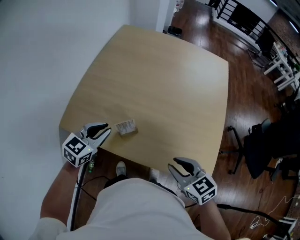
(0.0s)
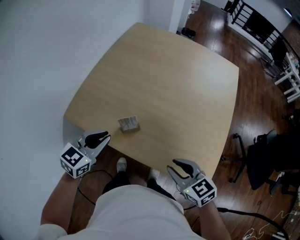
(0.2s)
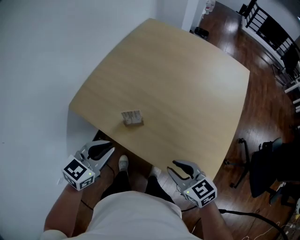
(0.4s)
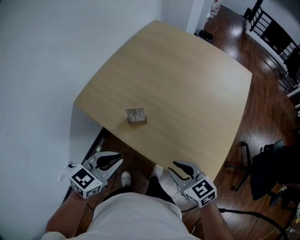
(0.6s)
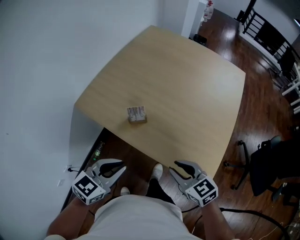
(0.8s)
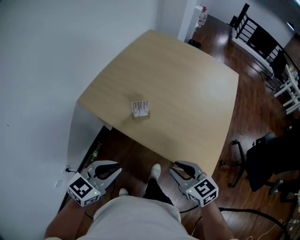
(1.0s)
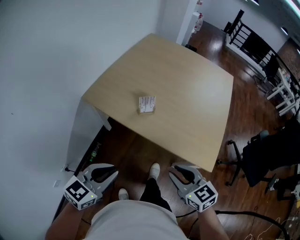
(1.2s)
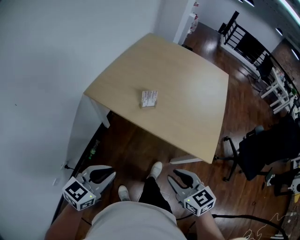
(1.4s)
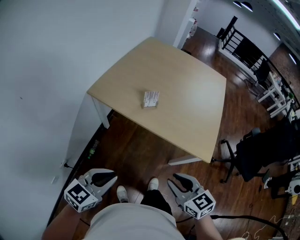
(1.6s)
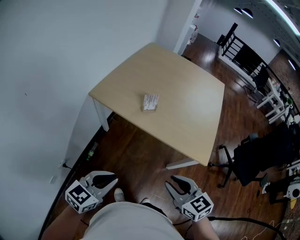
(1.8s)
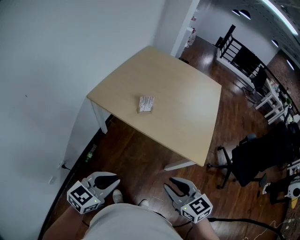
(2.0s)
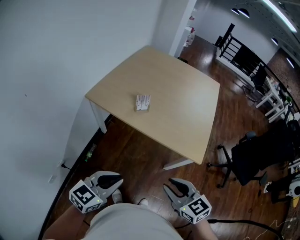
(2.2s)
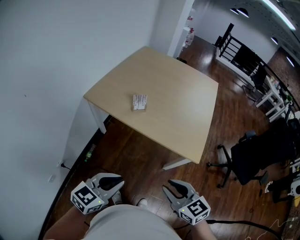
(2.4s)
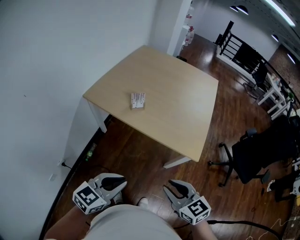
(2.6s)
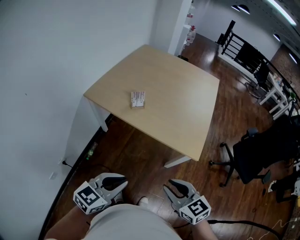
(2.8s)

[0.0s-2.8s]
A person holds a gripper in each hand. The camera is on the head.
0.0s to 1.4s: The left gripper goes roughly 40 cm backward. Meanwhile the right gripper is displaced backward and to the left by some 25 cm.
1.4s to 2.8s: The left gripper travels to the right and backward by some 15 cm, while the right gripper heads backward and to the right, covering roughly 15 cm.

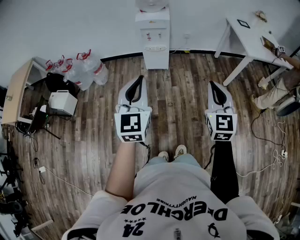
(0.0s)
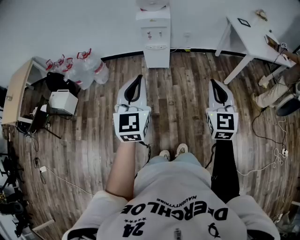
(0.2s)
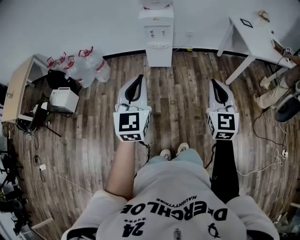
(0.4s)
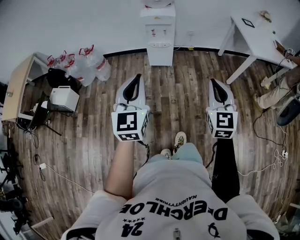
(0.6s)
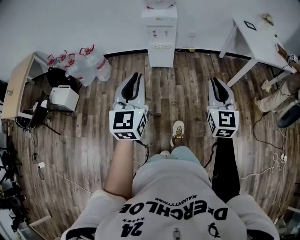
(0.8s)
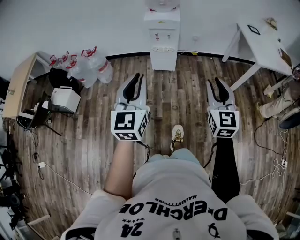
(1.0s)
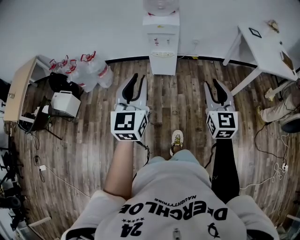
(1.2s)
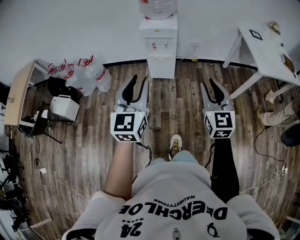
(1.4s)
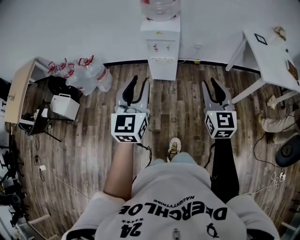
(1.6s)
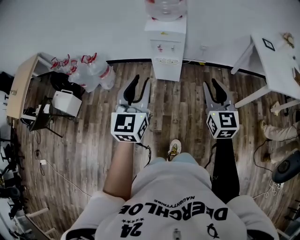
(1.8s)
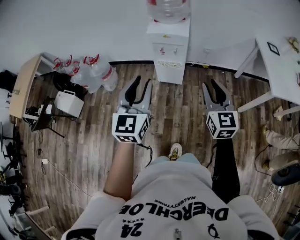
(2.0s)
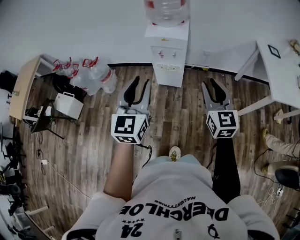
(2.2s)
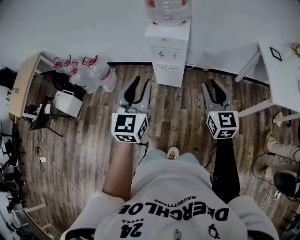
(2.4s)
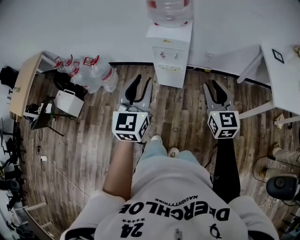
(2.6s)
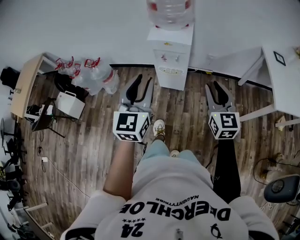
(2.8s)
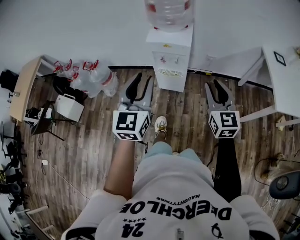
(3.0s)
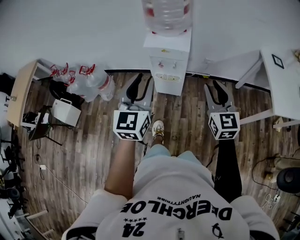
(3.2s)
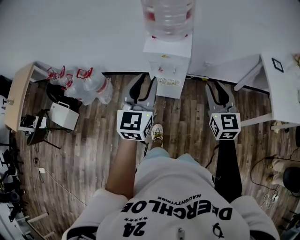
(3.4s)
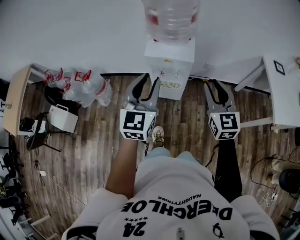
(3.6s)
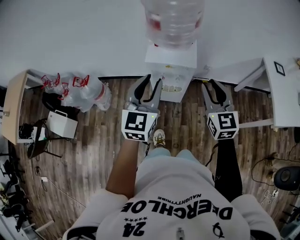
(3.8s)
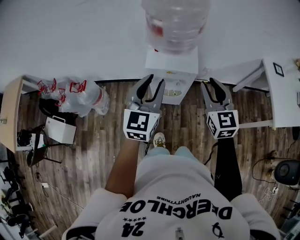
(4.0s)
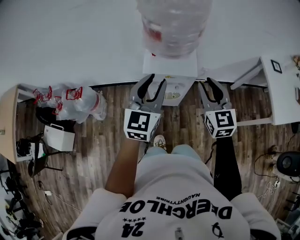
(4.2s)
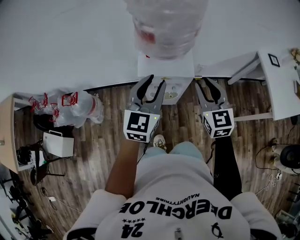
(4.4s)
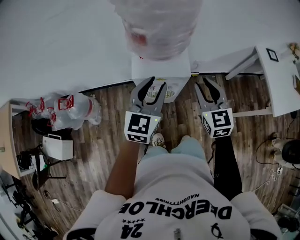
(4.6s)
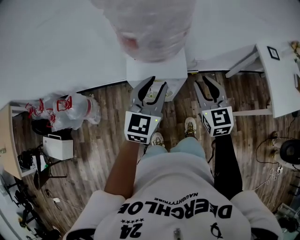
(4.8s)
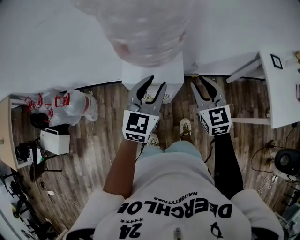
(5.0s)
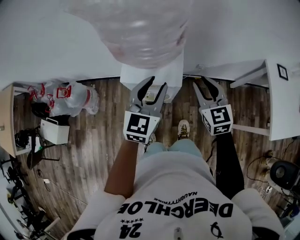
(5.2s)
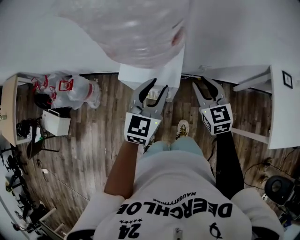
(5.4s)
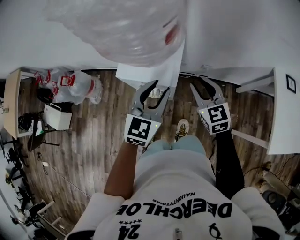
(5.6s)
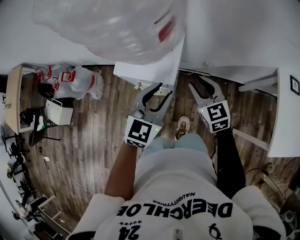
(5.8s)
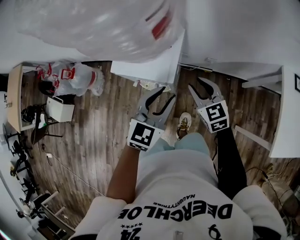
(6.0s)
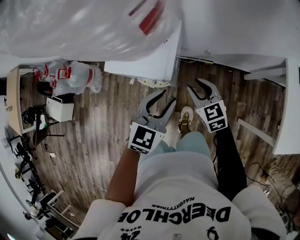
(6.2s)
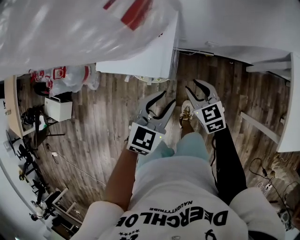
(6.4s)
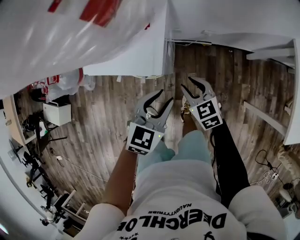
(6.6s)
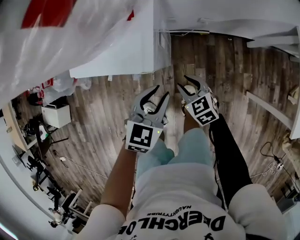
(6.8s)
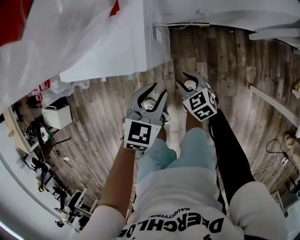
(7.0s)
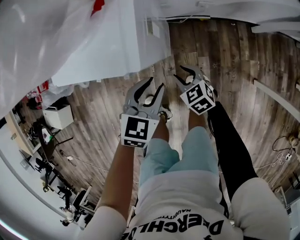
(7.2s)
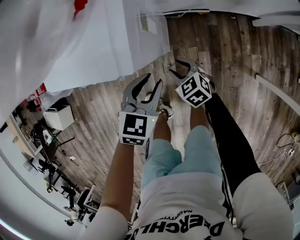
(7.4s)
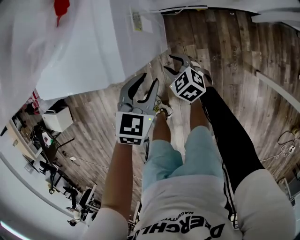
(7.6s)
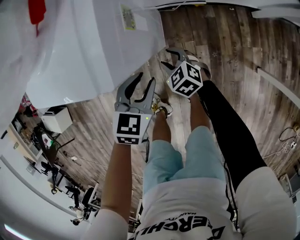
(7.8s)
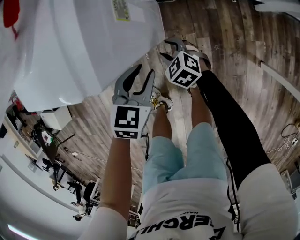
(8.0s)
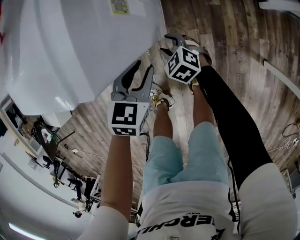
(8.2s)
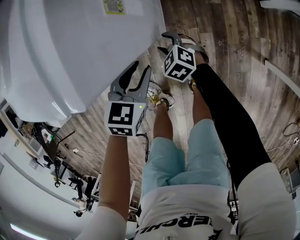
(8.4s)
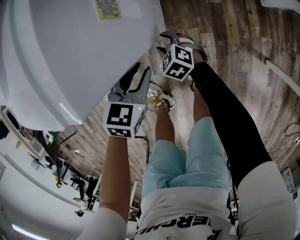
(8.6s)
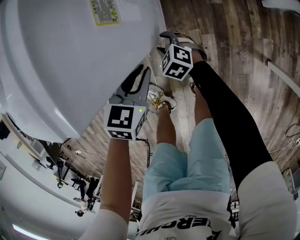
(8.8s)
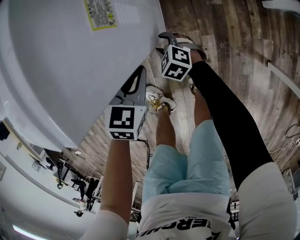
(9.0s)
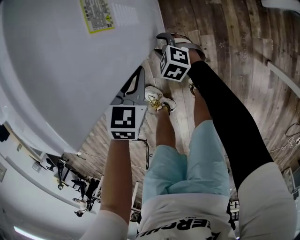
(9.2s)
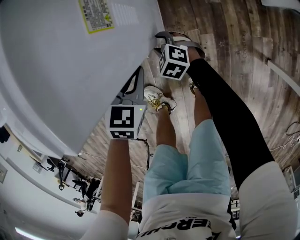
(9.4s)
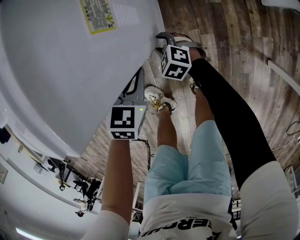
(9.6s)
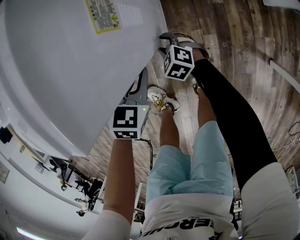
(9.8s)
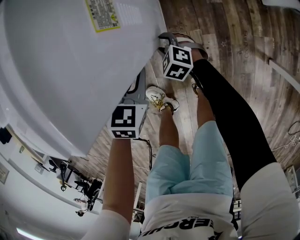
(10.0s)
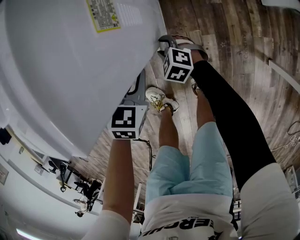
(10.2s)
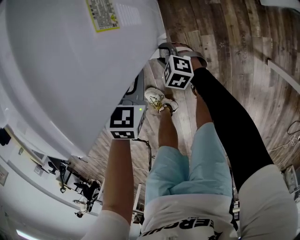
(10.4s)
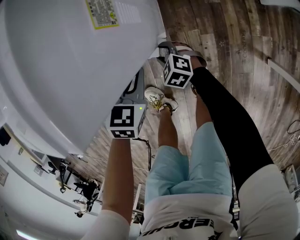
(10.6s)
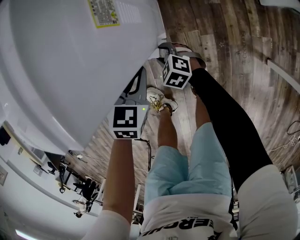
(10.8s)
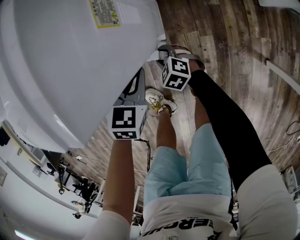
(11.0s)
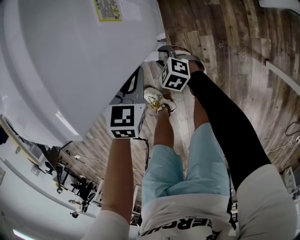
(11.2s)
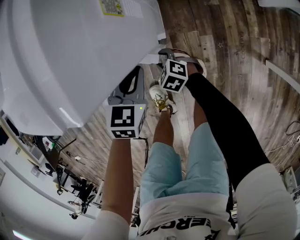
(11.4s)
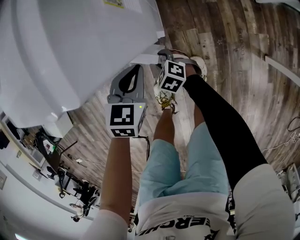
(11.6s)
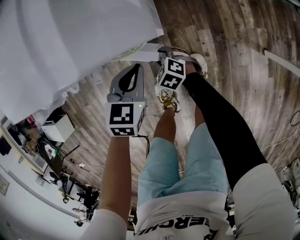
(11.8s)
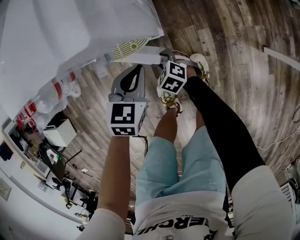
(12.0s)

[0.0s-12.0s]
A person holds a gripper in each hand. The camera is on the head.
0.0s to 1.6s: Both grippers move forward, approximately 20 cm. The left gripper opens up. Meanwhile the right gripper opens up.
1.6s to 3.0s: Both grippers travel together forward, about 20 cm.
3.0s to 4.4s: The left gripper is displaced forward by about 30 cm, and rotates approximately 20 degrees; the right gripper shifts some 30 cm forward and to the left.
4.4s to 6.0s: The left gripper travels to the right and downward by approximately 20 cm; the right gripper goes some 25 cm downward, to the right and forward, and turns by roughly 30 degrees.
6.0s to 7.6s: The grippers both shift downward by roughly 35 cm. The right gripper swivels some 20 degrees, while the left gripper turns by roughly 30 degrees.
7.6s to 9.0s: The two grippers go some 10 cm downward. The left gripper closes.
9.0s to 10.4s: The grippers make only small movements.
10.4s to 12.0s: The right gripper heads backward, covering about 5 cm, while the left gripper shifts by approximately 5 cm.

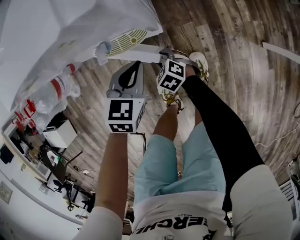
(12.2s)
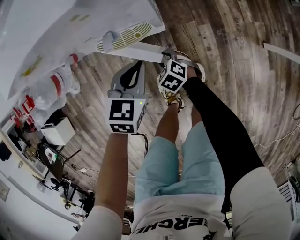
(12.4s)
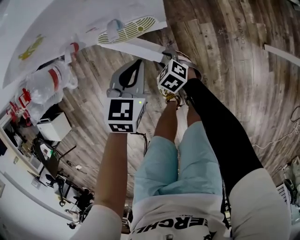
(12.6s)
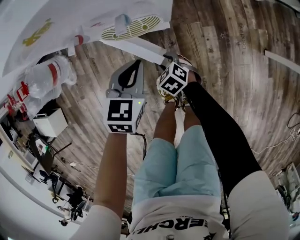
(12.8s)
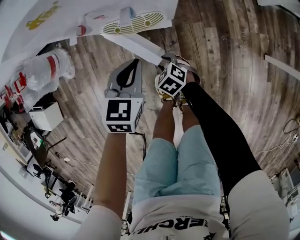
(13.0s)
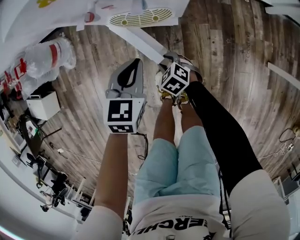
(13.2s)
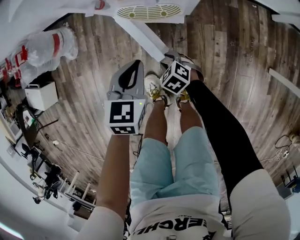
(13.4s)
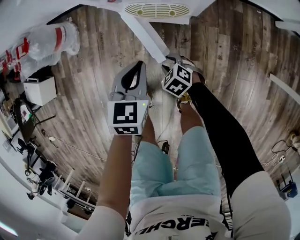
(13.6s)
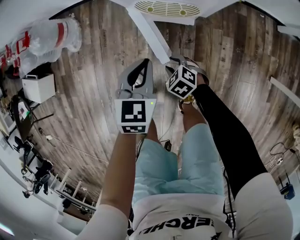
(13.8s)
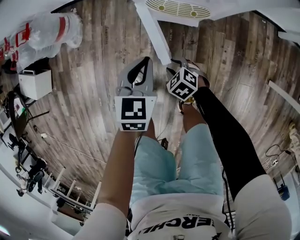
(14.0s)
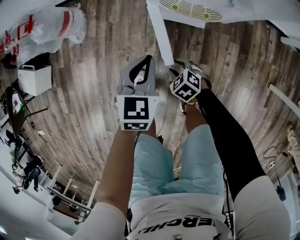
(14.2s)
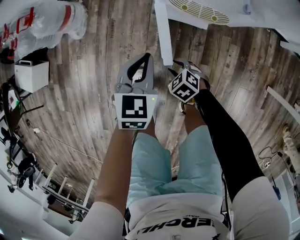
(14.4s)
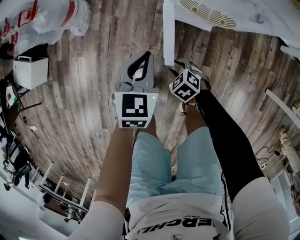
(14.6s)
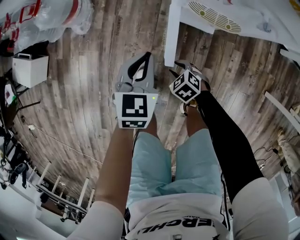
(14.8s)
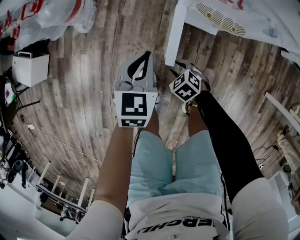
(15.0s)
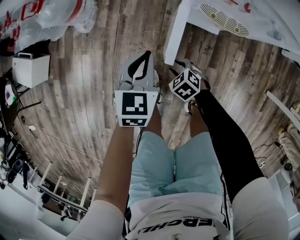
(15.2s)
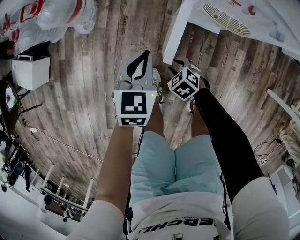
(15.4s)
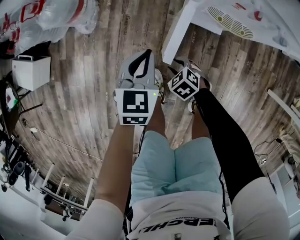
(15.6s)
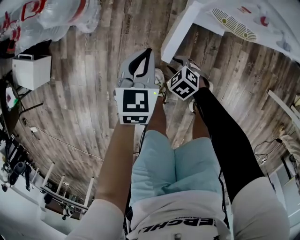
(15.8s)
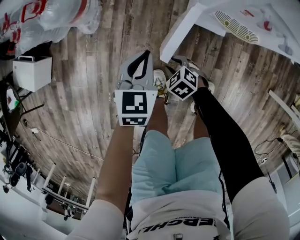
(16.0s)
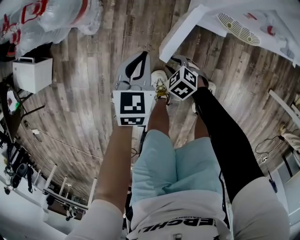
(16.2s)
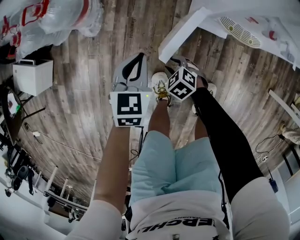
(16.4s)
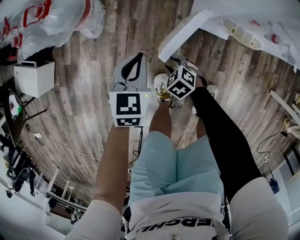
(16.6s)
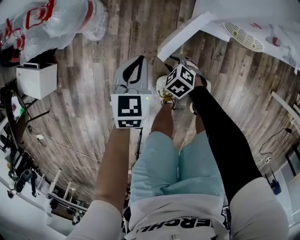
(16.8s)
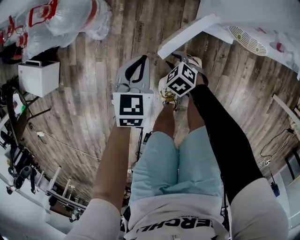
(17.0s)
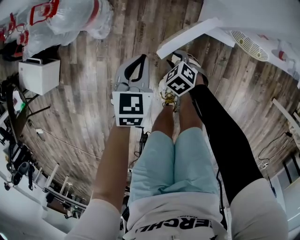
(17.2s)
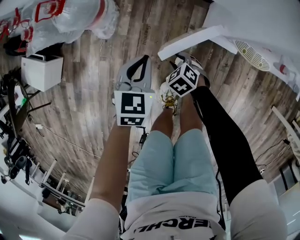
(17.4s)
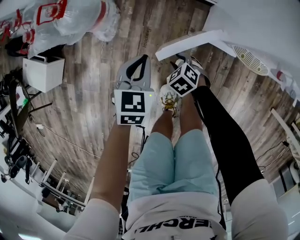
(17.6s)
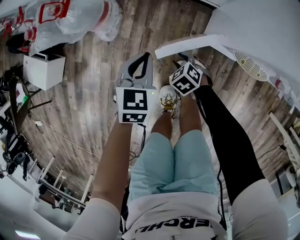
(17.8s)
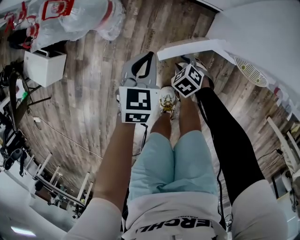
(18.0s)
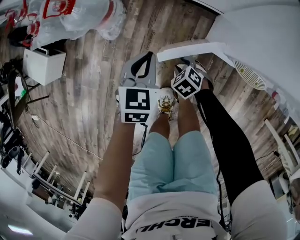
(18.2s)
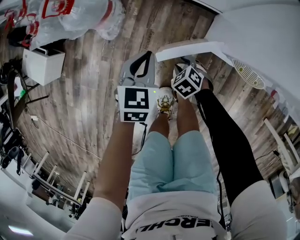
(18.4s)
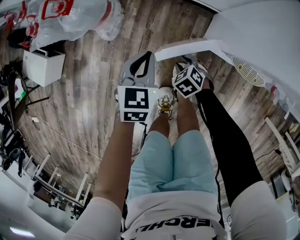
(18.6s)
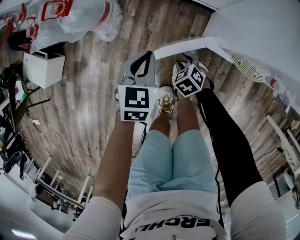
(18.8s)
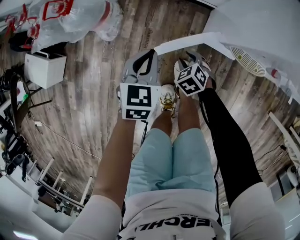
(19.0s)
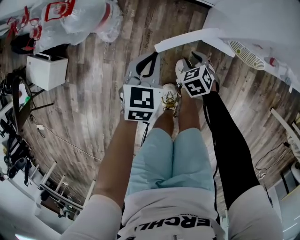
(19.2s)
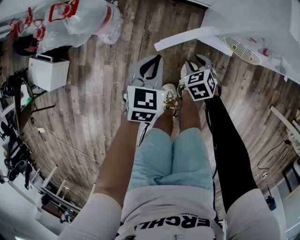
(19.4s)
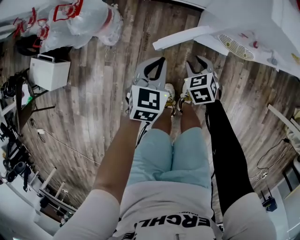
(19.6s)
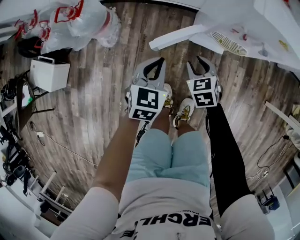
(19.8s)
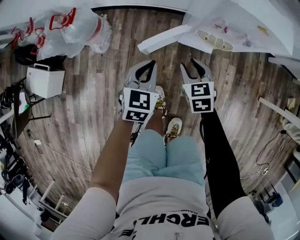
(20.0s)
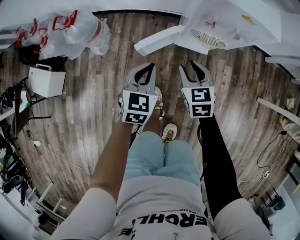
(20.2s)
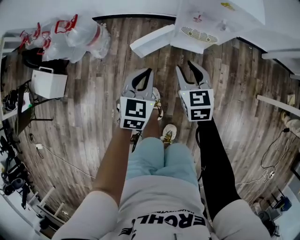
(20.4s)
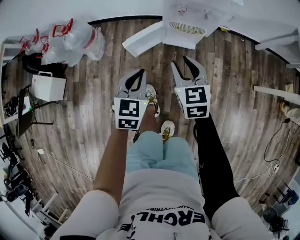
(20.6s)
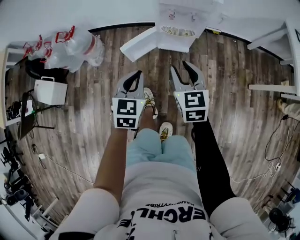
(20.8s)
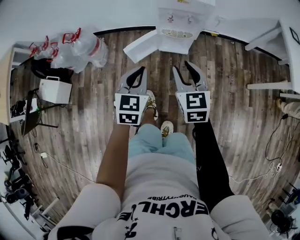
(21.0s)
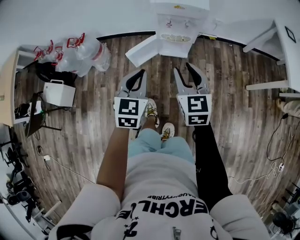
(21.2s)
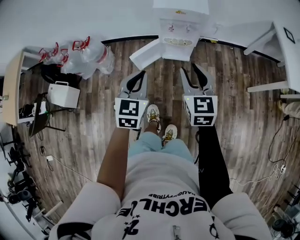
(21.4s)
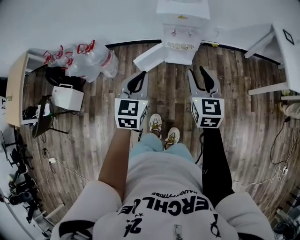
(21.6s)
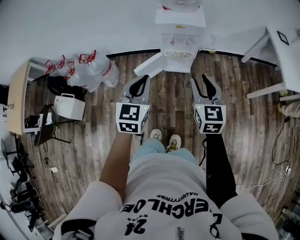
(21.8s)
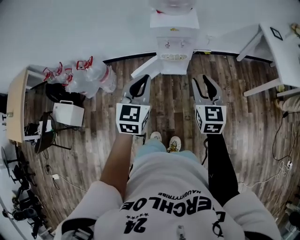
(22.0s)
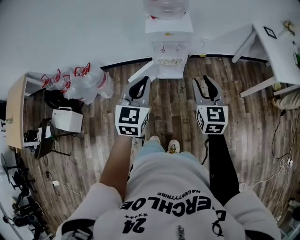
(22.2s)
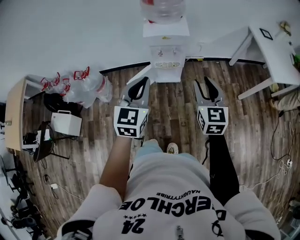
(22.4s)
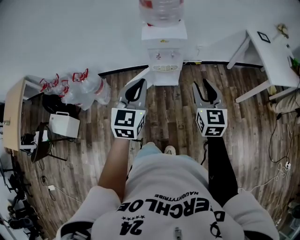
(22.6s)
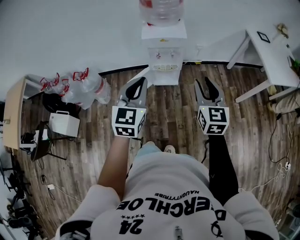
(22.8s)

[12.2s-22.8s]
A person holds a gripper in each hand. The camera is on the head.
12.2s to 13.8s: The two grippers go approximately 15 cm to the left and backward. The left gripper changes its angle by about 20 degrees.
13.8s to 15.2s: The left gripper heads to the left and forward, covering approximately 20 cm; the right gripper moves to the left, roughly 15 cm.
15.2s to 16.8s: The right gripper travels forward and to the left by about 15 cm. The left gripper travels to the left and forward by some 15 cm.
16.8s to 18.2s: The grippers both shift forward by approximately 10 cm.
18.2s to 19.8s: The left gripper changes place by approximately 15 cm; the right gripper shifts approximately 20 cm upward, and rotates approximately 40 degrees.
19.8s to 21.2s: The grippers both shift upward, backward and to the right by approximately 40 cm. The right gripper tilts its fingers some 30 degrees upward.
21.2s to 22.8s: The right gripper shifts roughly 20 cm upward and to the right. Meanwhile the left gripper goes some 15 cm upward.
